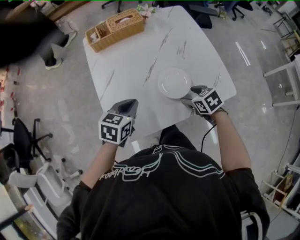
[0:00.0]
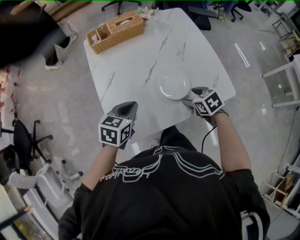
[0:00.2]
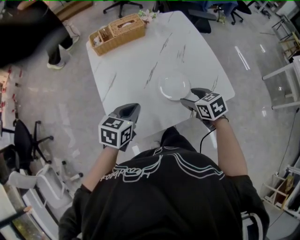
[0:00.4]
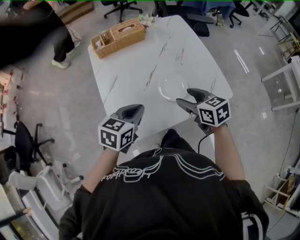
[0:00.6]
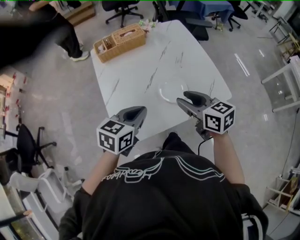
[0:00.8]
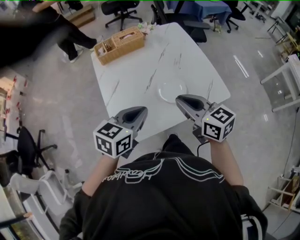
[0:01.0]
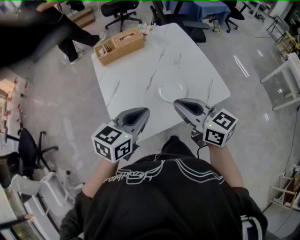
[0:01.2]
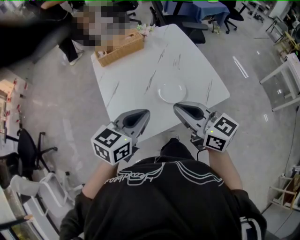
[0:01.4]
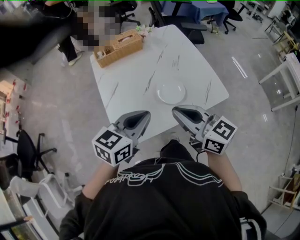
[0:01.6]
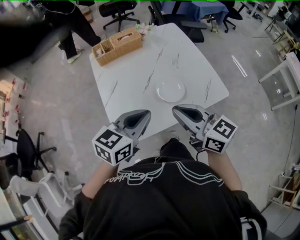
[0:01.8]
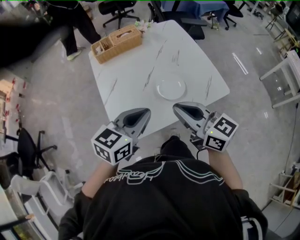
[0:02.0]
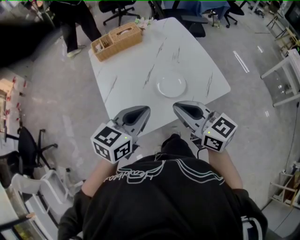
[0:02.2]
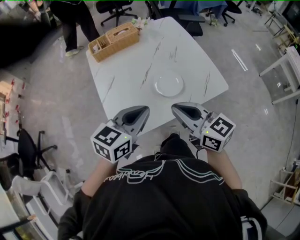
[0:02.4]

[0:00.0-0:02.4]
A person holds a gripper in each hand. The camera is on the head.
0.0 to 1.2 s: The left gripper heads upward and backward, covering approximately 15 cm, and turns by some 20 degrees, while the right gripper goes roughly 25 cm upward, tilts its fingers some 50 degrees upward, and closes up.
1.2 to 2.4 s: The grippers make only small movements.

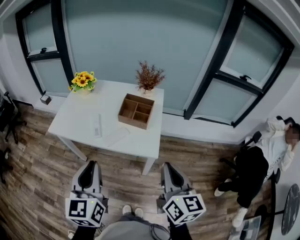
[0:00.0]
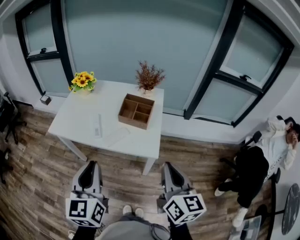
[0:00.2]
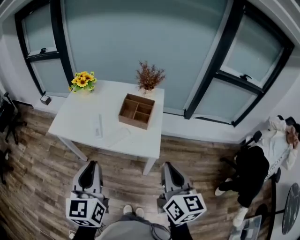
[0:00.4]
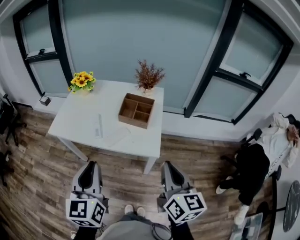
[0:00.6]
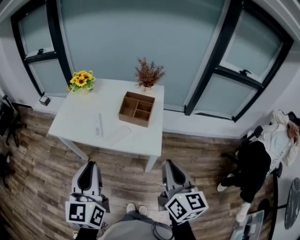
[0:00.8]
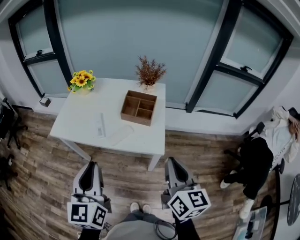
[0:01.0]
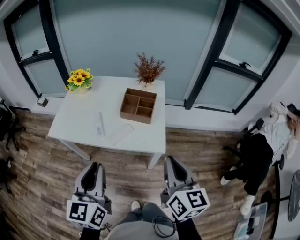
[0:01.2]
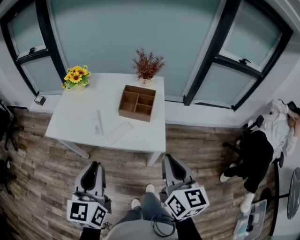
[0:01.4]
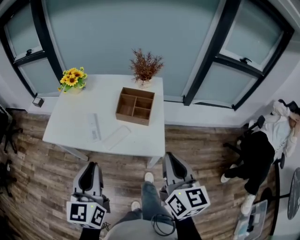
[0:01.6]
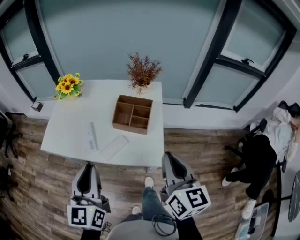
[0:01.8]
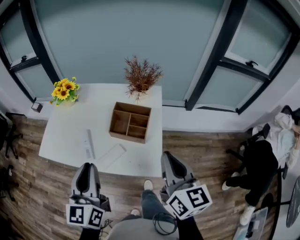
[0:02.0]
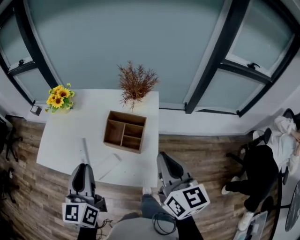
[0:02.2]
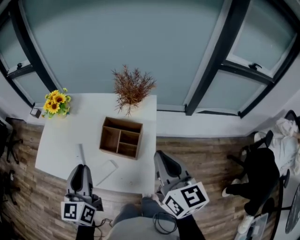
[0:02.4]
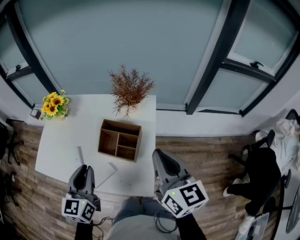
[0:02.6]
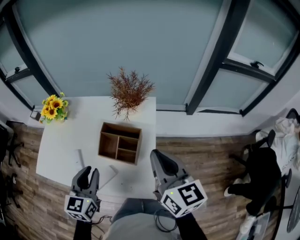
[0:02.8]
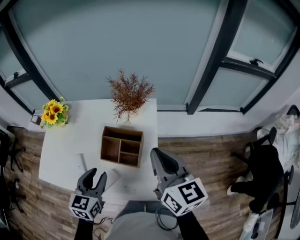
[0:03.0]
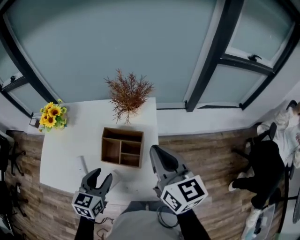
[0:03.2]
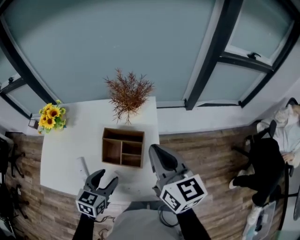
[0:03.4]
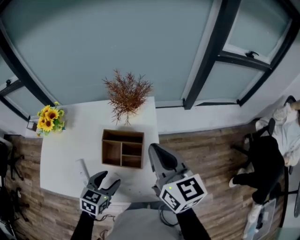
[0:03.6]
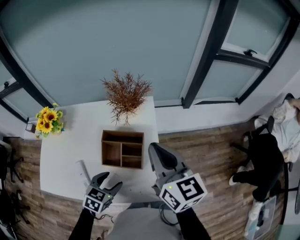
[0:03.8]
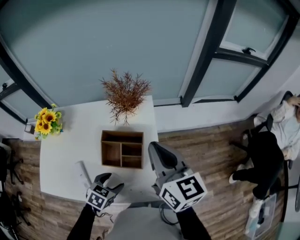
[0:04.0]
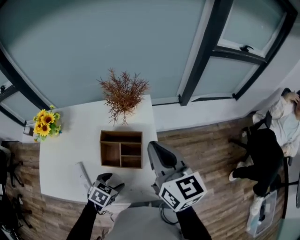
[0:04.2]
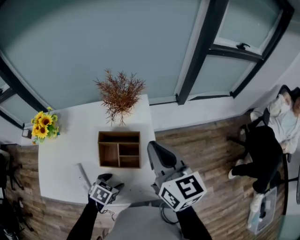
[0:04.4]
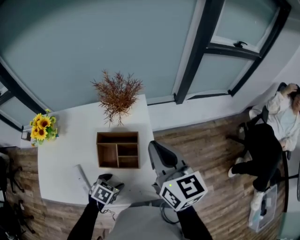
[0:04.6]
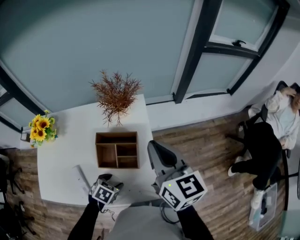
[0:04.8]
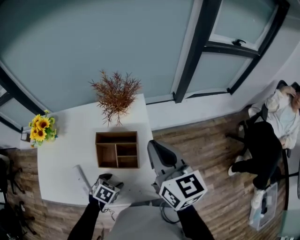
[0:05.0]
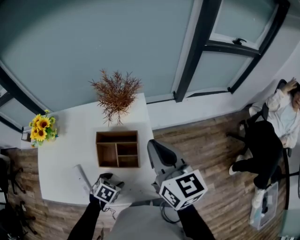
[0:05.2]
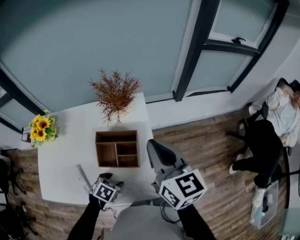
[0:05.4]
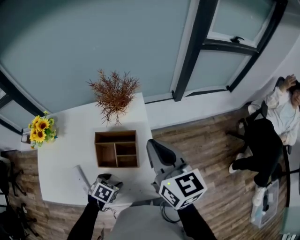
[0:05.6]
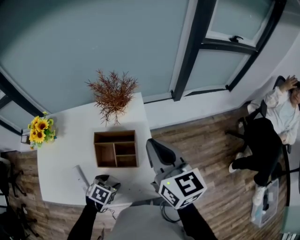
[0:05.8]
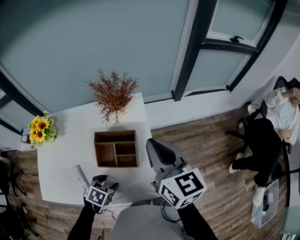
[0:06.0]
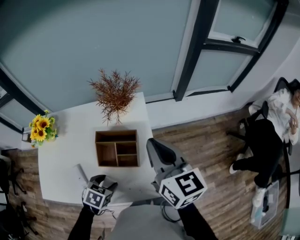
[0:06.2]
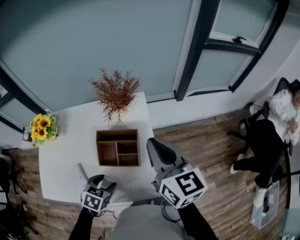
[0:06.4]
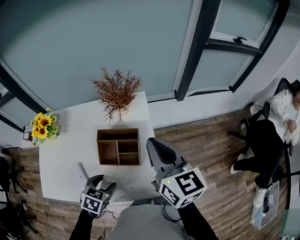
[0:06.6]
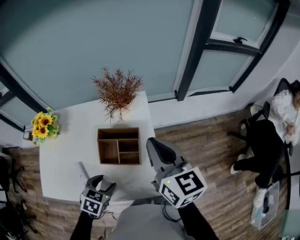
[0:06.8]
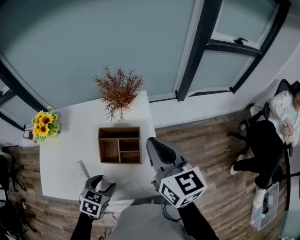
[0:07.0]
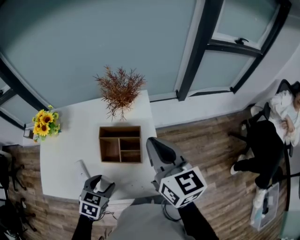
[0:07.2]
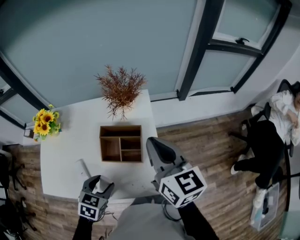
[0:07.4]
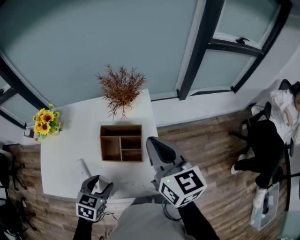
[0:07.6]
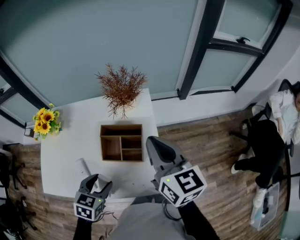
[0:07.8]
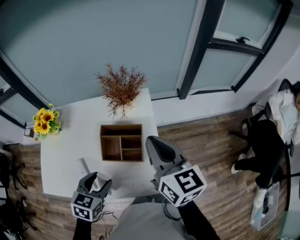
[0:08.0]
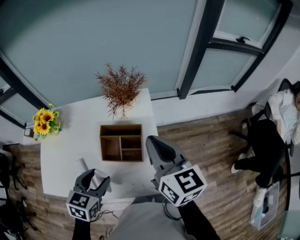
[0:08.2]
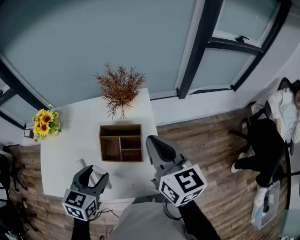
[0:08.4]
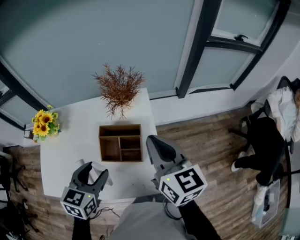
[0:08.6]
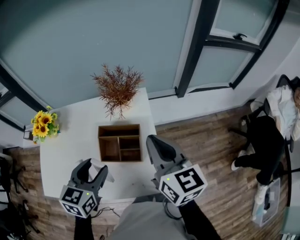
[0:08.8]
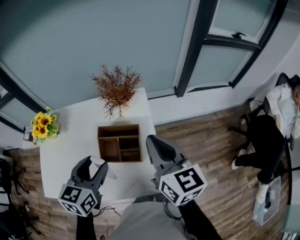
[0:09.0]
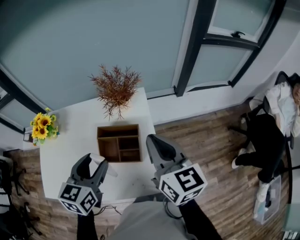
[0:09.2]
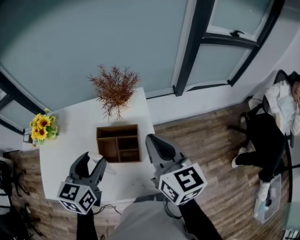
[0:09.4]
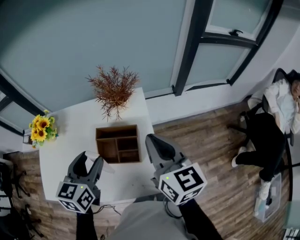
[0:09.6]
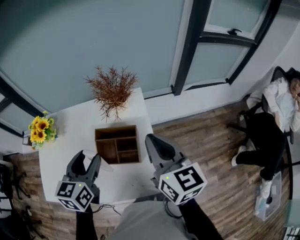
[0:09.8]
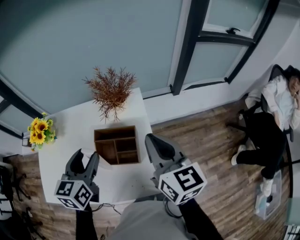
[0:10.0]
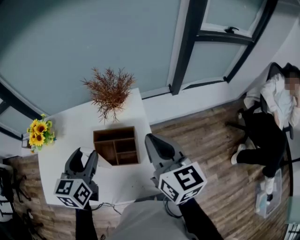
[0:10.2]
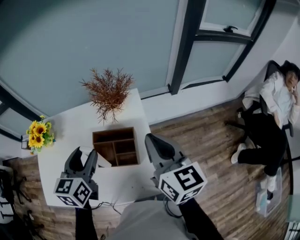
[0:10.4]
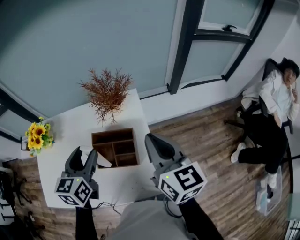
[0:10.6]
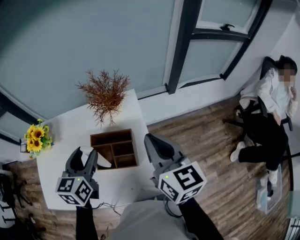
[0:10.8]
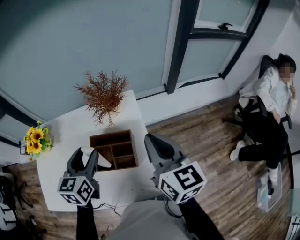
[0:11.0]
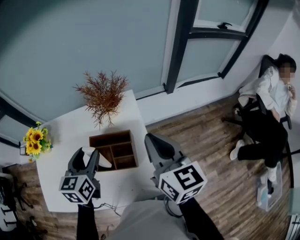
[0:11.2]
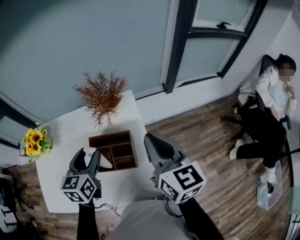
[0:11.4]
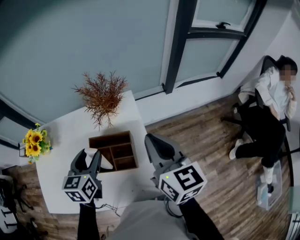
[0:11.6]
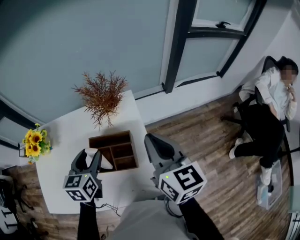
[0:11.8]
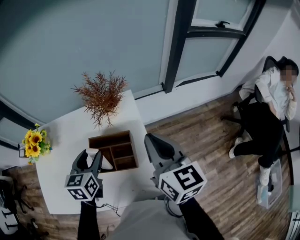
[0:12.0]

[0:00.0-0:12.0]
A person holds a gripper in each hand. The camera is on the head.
0.0 to 1.6 s: Both grippers travel together forward, about 5 cm.
1.6 to 3.0 s: The right gripper moves forward, about 25 cm. The left gripper moves forward, to the right and downward, approximately 25 cm, and swivels roughly 20 degrees.
3.0 to 4.4 s: The left gripper moves downward, roughly 20 cm, tilts its fingers approximately 40 degrees downward, and opens up.
4.4 to 6.0 s: The grippers make only small movements.
6.0 to 7.6 s: The left gripper is displaced upward by some 10 cm, and rotates about 20 degrees.
7.6 to 9.0 s: The left gripper moves upward and forward, about 15 cm, and changes its angle by about 20 degrees.
9.0 to 10.4 s: The left gripper shifts roughly 5 cm forward.
10.4 to 12.0 s: The left gripper moves downward, approximately 5 cm.

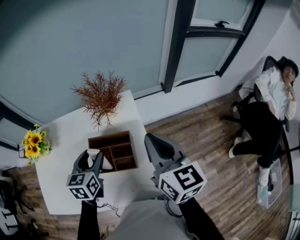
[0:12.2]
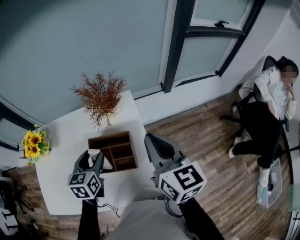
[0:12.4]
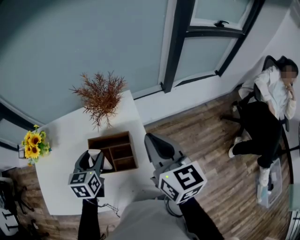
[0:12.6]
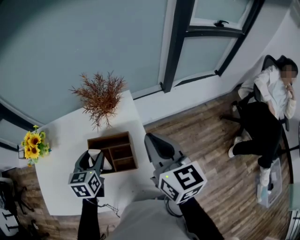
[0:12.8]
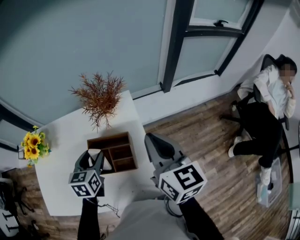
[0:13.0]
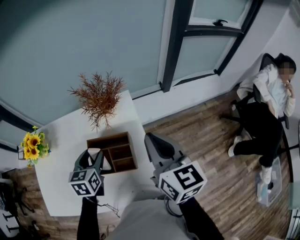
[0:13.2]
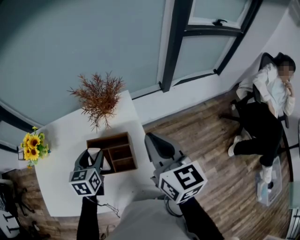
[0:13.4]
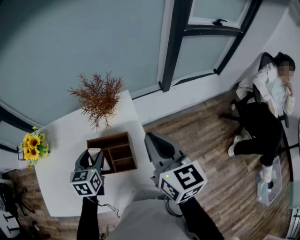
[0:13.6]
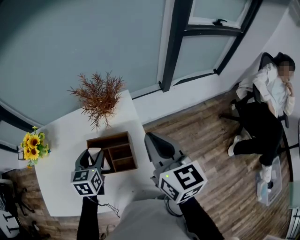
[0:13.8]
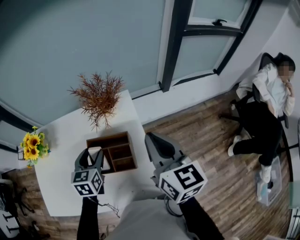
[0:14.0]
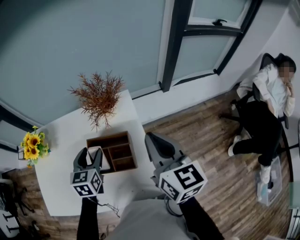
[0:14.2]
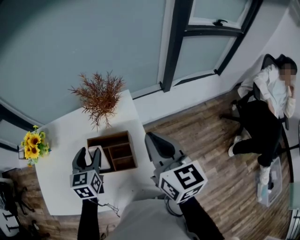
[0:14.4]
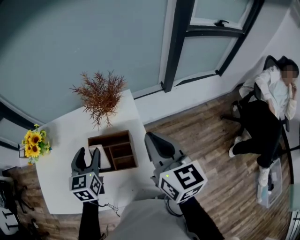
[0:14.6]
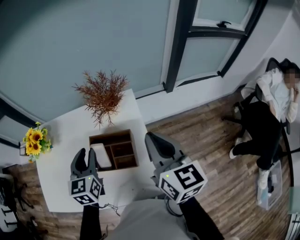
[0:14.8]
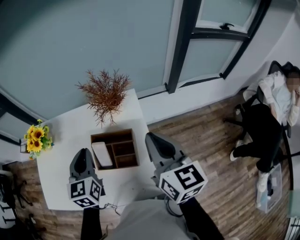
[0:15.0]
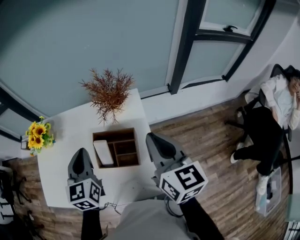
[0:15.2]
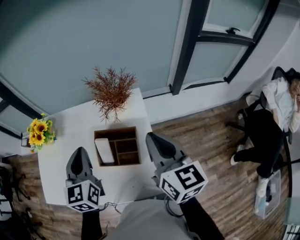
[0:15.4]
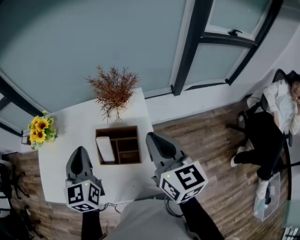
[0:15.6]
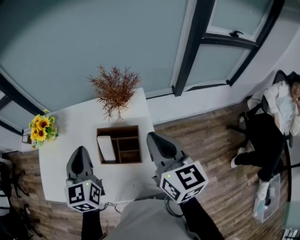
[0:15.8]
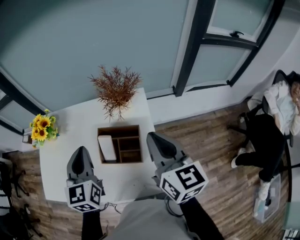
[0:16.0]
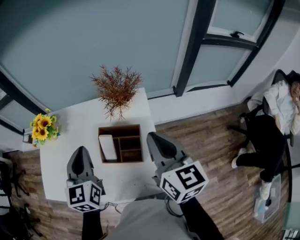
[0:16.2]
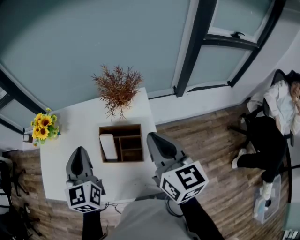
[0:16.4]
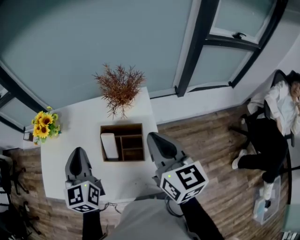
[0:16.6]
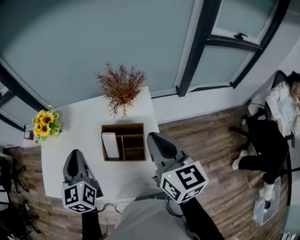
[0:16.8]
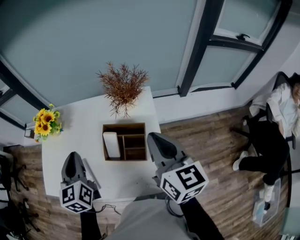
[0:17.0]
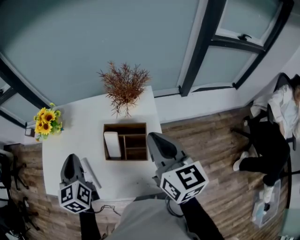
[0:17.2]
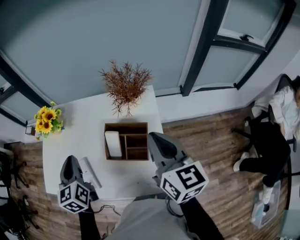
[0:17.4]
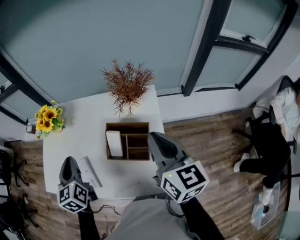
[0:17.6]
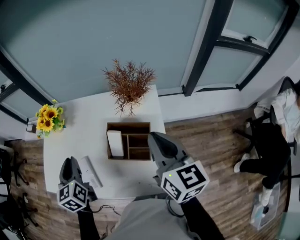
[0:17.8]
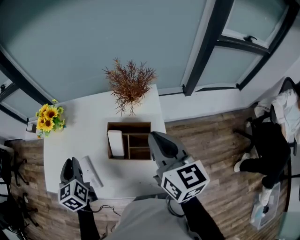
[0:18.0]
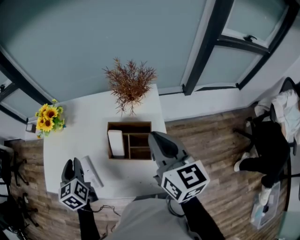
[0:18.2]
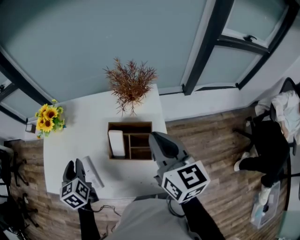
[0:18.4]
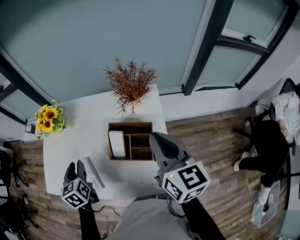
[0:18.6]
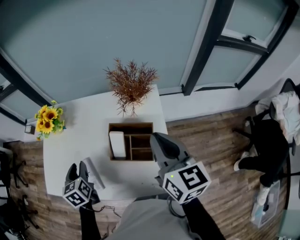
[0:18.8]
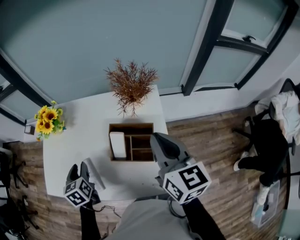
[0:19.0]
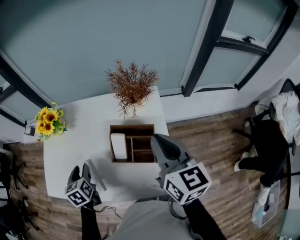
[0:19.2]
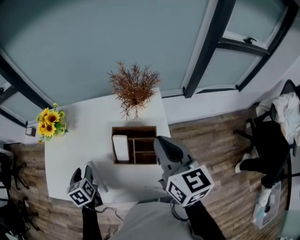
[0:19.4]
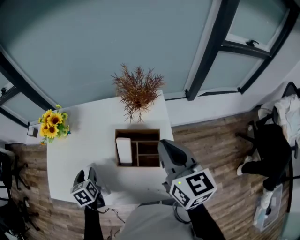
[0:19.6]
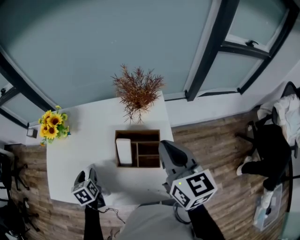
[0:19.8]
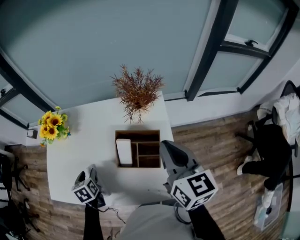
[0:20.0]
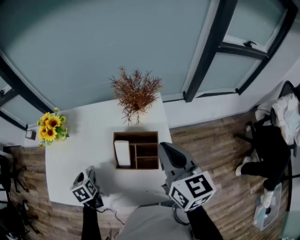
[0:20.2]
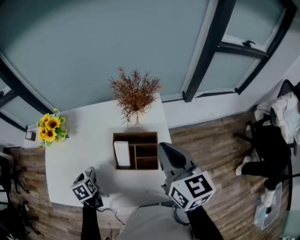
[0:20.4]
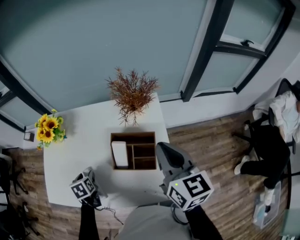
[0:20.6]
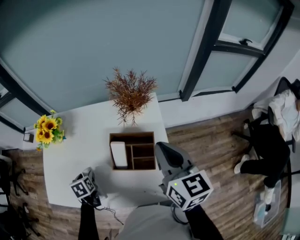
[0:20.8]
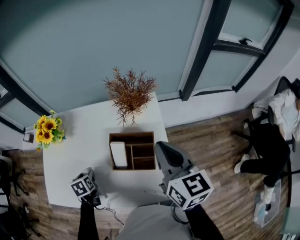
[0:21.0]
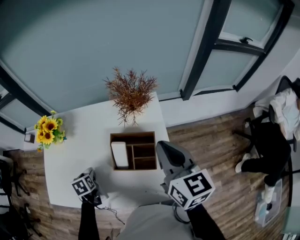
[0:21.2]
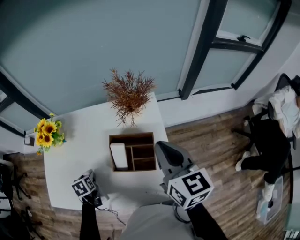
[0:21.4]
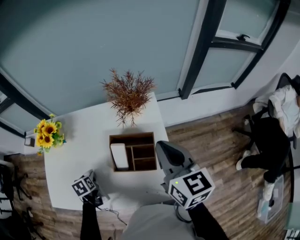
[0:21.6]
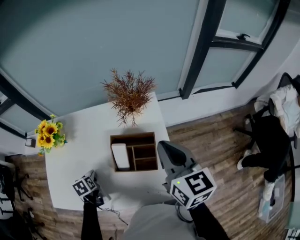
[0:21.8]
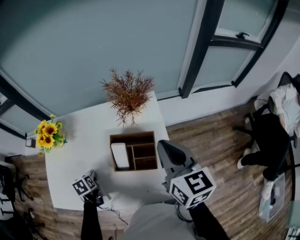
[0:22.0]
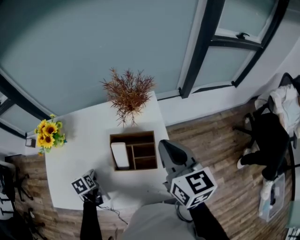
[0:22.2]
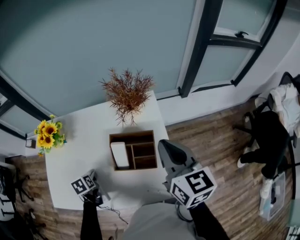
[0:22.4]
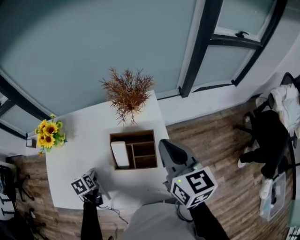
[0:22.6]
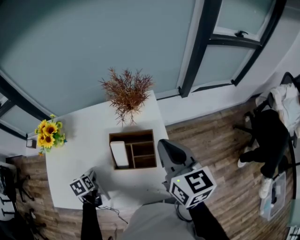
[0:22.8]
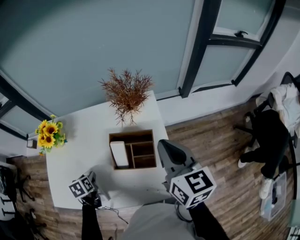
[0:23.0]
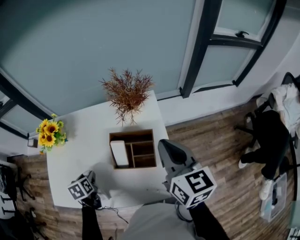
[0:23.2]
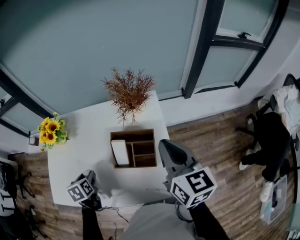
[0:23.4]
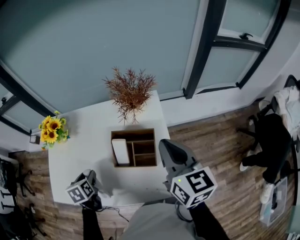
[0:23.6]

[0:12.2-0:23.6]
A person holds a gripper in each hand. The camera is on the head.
12.2 to 13.6 s: There are only small adjustments of the grippers.
13.6 to 15.0 s: The left gripper travels upward by approximately 10 cm, and closes up.
15.0 to 16.4 s: The left gripper heads upward, covering about 5 cm.
16.4 to 17.8 s: The left gripper shifts approximately 15 cm to the left and downward, and turns by roughly 20 degrees.
17.8 to 19.4 s: The left gripper travels downward by about 10 cm, swivels approximately 20 degrees, and opens.
19.4 to 20.8 s: The left gripper goes approximately 5 cm downward.
20.8 to 22.2 s: The grippers move only a little.
22.2 to 23.6 s: The left gripper travels upward by some 10 cm.
